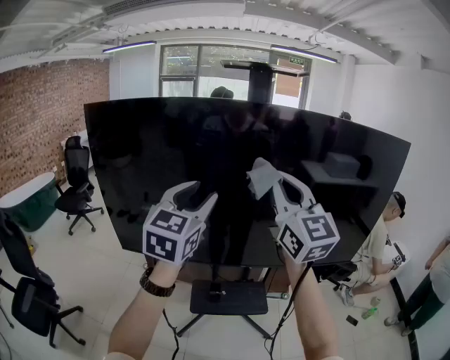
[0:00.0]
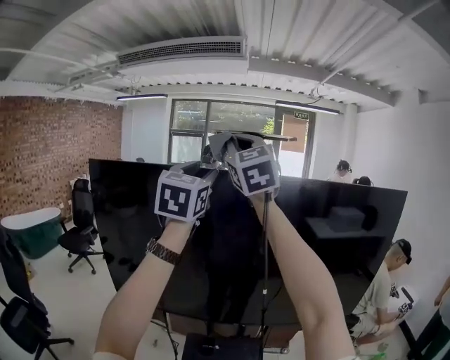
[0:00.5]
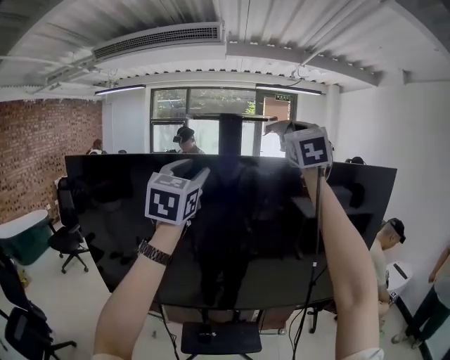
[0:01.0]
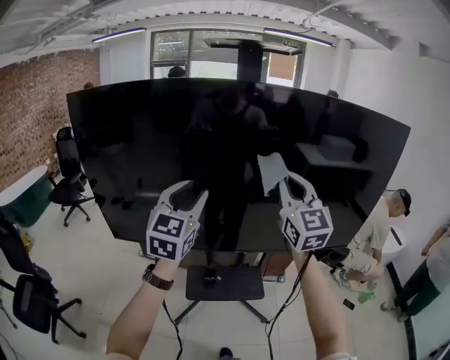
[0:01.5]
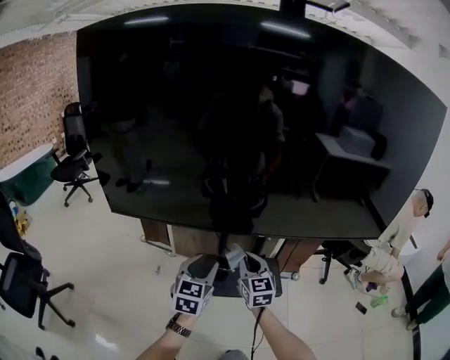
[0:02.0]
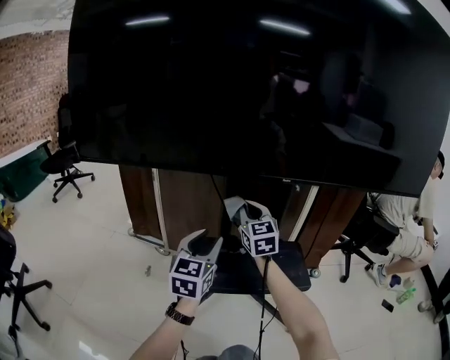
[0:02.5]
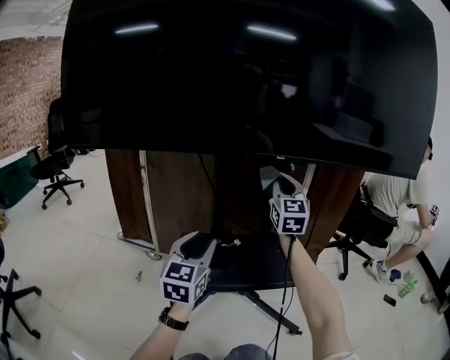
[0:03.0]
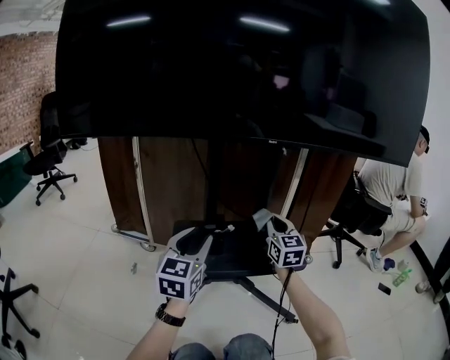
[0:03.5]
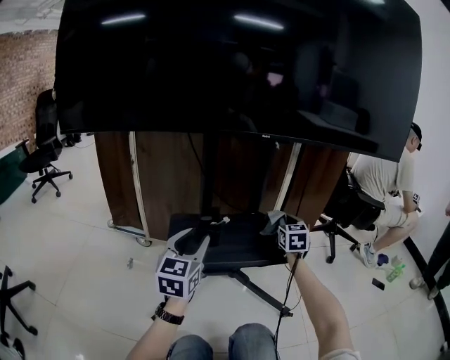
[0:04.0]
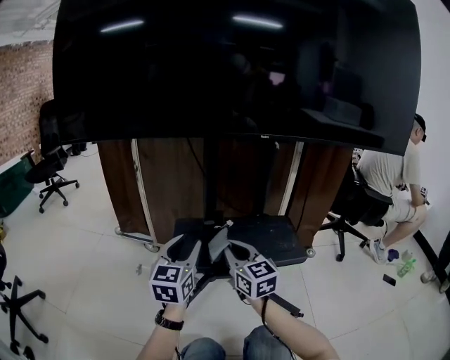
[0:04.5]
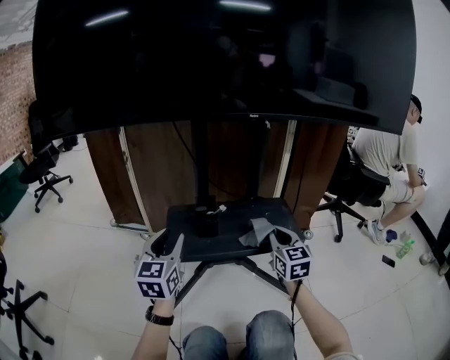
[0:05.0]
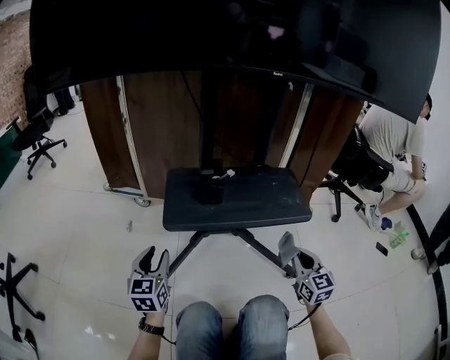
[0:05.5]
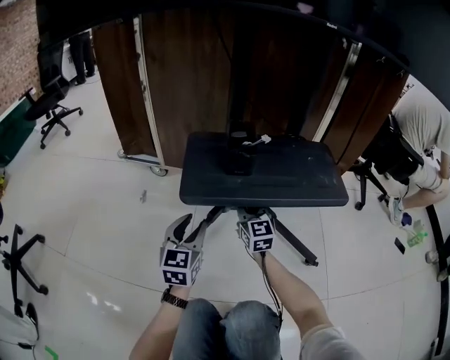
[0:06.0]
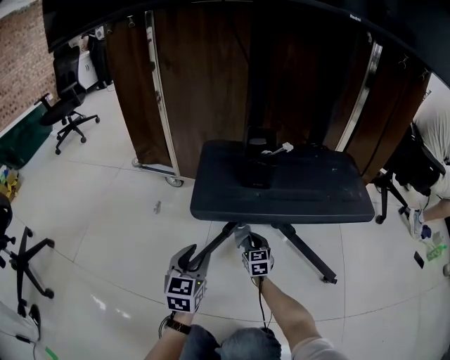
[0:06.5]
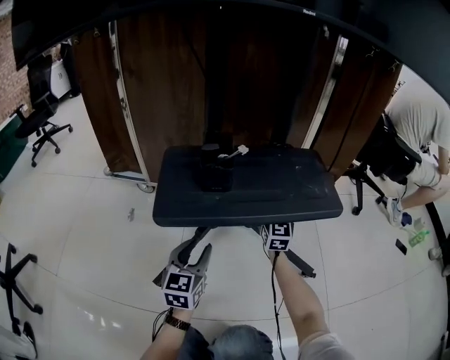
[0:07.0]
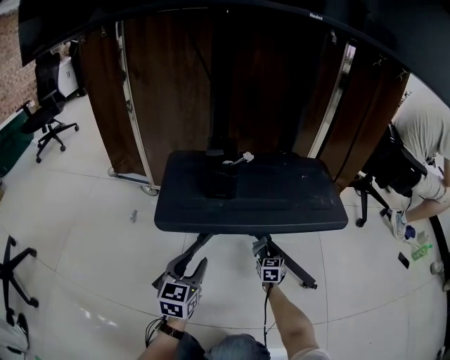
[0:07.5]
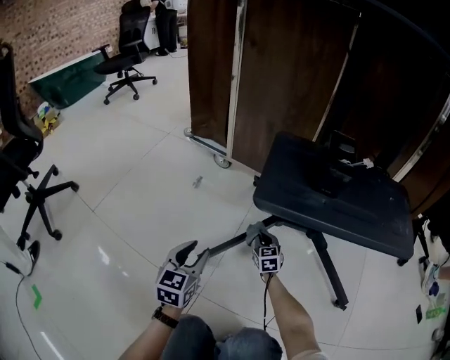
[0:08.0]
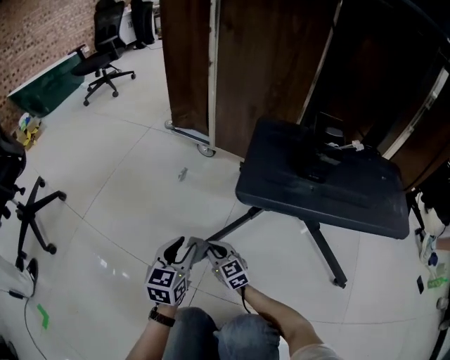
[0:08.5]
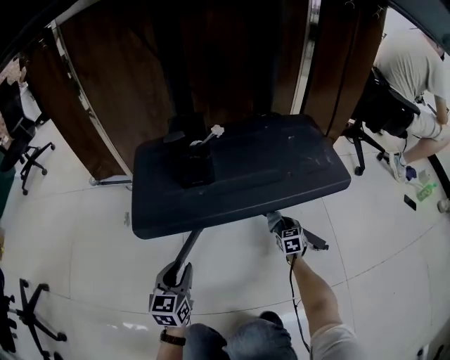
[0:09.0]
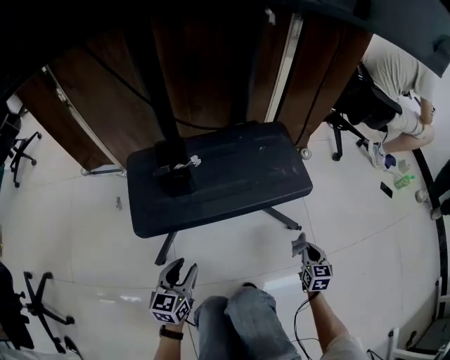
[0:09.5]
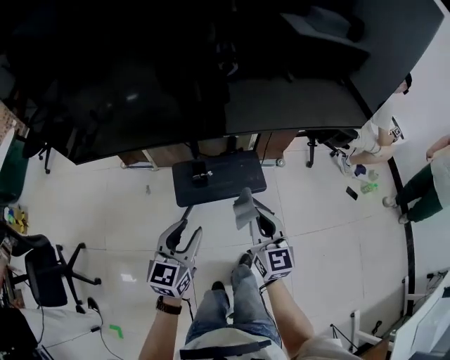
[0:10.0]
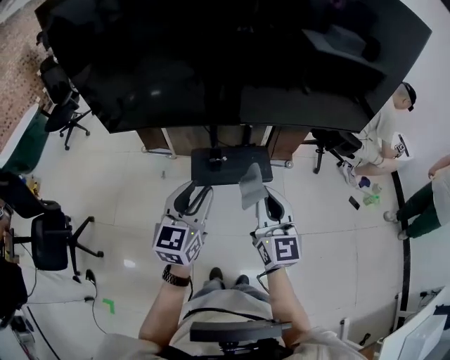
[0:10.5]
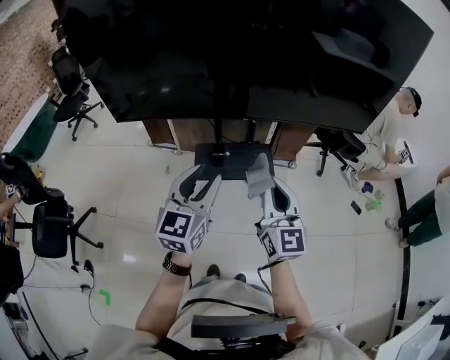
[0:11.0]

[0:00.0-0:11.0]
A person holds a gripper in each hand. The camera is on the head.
0:00.0 to 0:02.0: The grippers both shift downward by about 60 cm. The left gripper turns by some 20 degrees; the right gripper tilts its fingers roughly 30 degrees downward.
0:02.0 to 0:03.5: The left gripper heads downward, covering about 35 cm. The right gripper goes up and down, approximately 35 cm each way, reversing 2 times.
0:03.5 to 0:05.5: The right gripper moves left and right over some 25 cm, changing direction 2 times. Meanwhile the left gripper travels downward and to the left by roughly 25 cm, and rotates some 20 degrees.
0:05.5 to 0:07.5: The right gripper moves up and down over some 35 cm, changing direction 2 times. Meanwhile the left gripper shifts roughly 20 cm downward, to the right and forward.
0:07.5 to 0:09.0: The left gripper is displaced downward by approximately 5 cm.
0:09.0 to 0:11.0: The grippers both shift upward by roughly 1 m. The right gripper points its fingers approximately 40 degrees further upward.

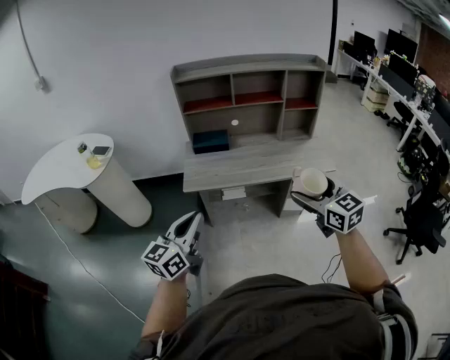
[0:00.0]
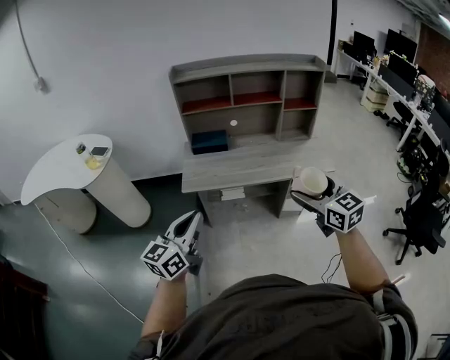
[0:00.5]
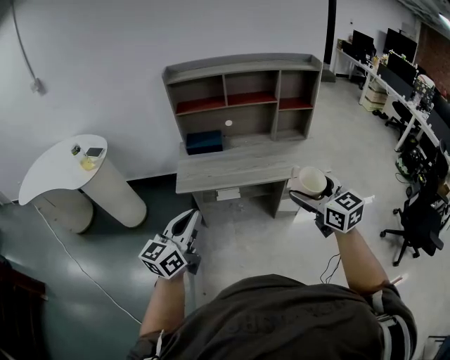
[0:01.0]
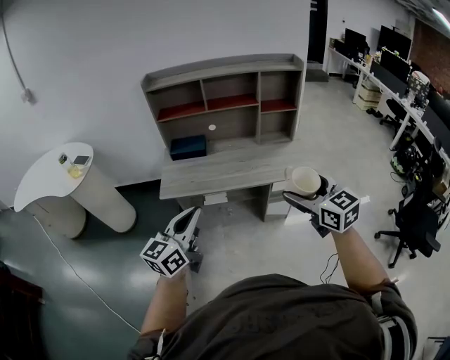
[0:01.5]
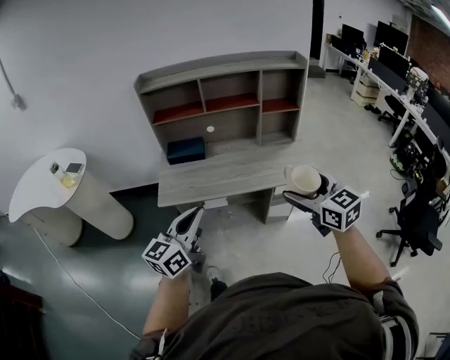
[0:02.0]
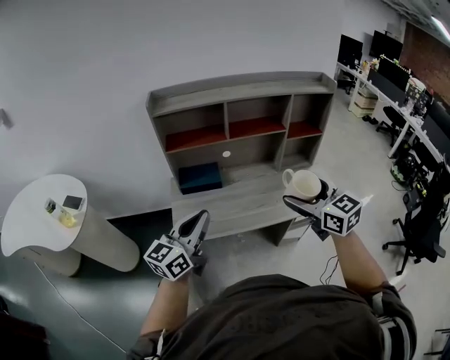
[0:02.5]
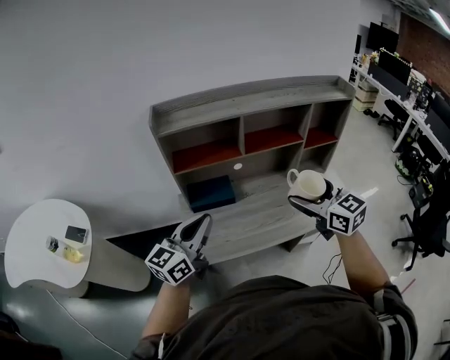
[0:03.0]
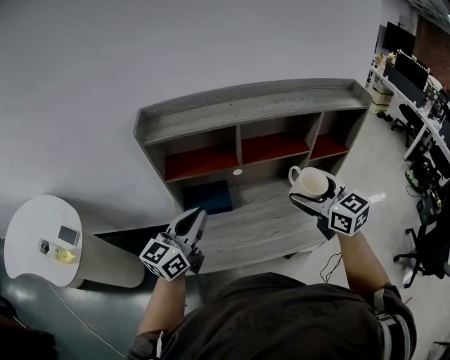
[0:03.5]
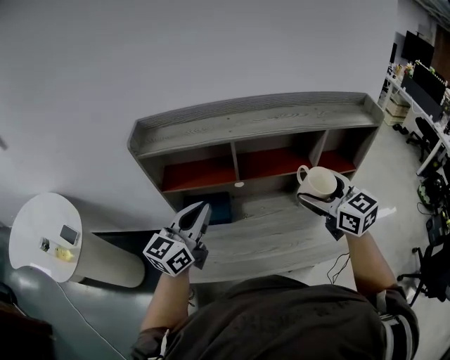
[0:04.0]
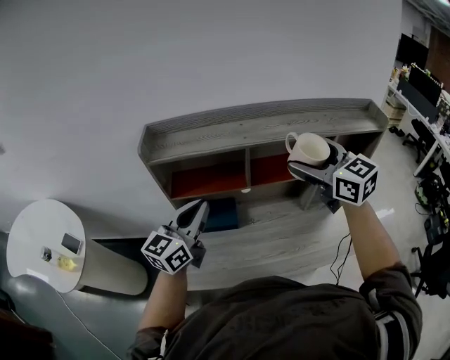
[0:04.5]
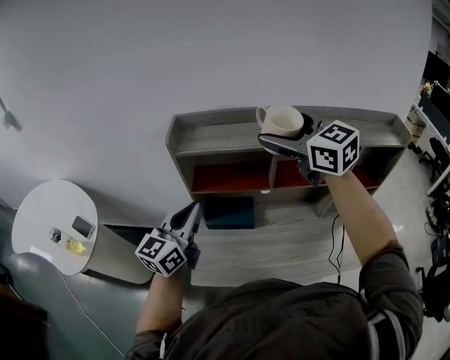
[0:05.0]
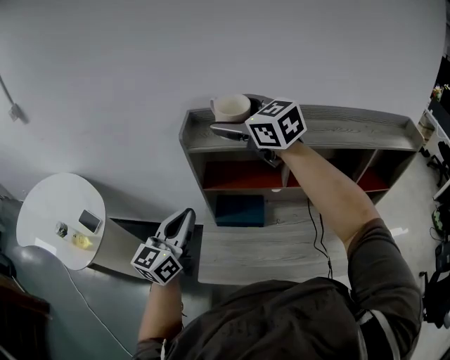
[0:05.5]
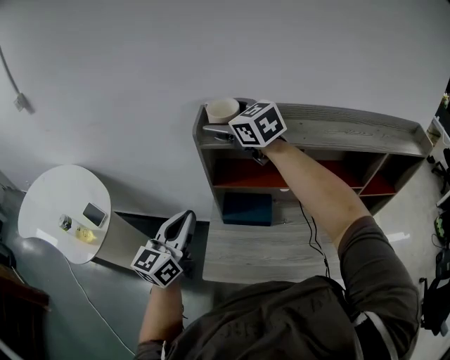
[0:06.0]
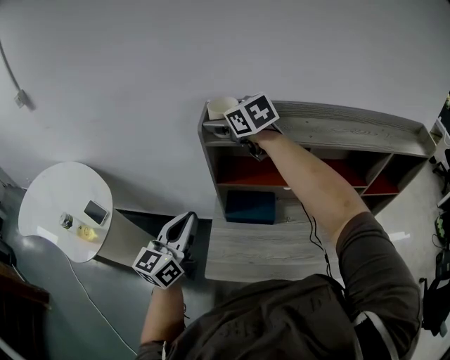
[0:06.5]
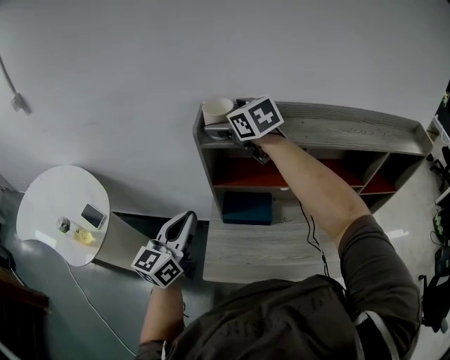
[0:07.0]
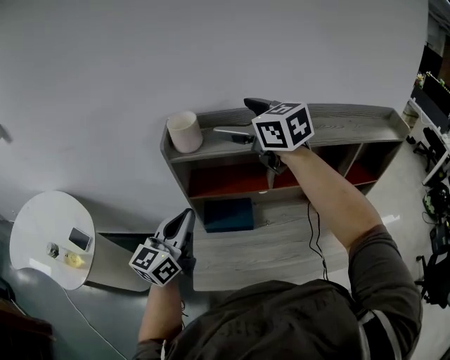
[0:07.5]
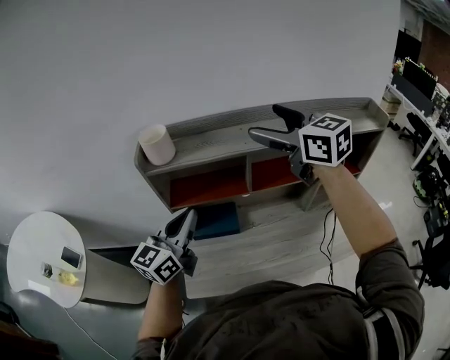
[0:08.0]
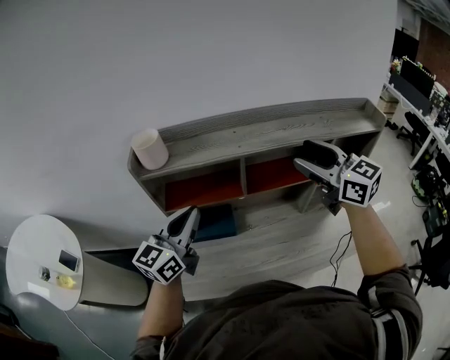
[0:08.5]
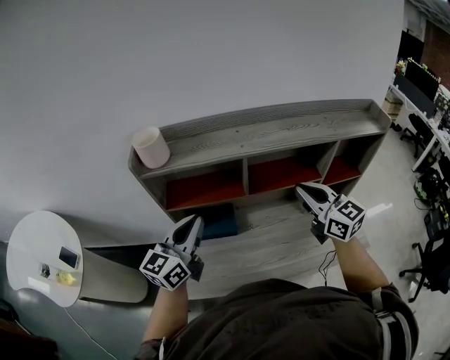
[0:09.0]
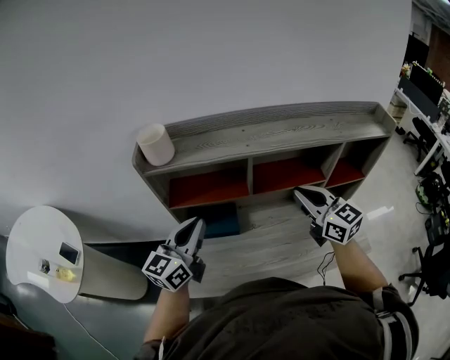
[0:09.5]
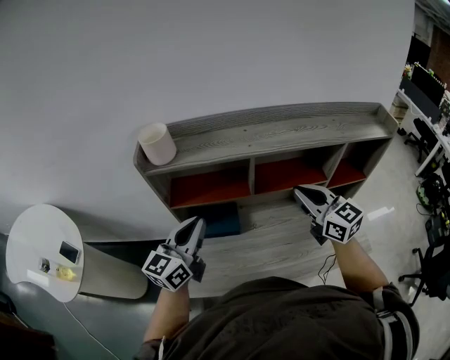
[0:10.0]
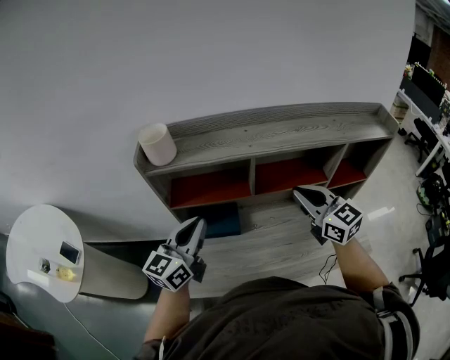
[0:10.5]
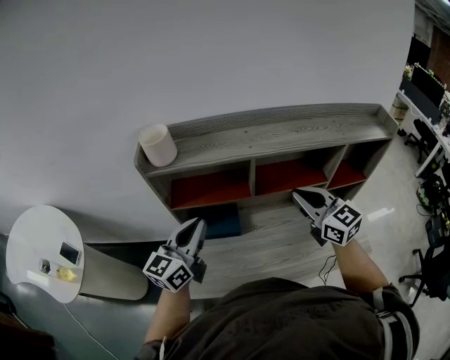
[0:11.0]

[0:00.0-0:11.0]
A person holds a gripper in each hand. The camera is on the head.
0:00.0 to 0:02.0: The two grippers go approximately 15 cm to the right and forward.
0:02.0 to 0:03.5: Both grippers are carried forward and to the left, about 40 cm.
0:03.5 to 0:05.5: The right gripper goes some 40 cm to the left, forward and upward, and rotates approximately 30 degrees; the left gripper goes about 15 cm to the left and forward.
0:05.5 to 0:07.5: The right gripper goes about 5 cm to the right.
0:07.5 to 0:09.0: The right gripper moves to the right, downward and backward, approximately 30 cm, and closes its fingers; the left gripper is displaced to the right by roughly 10 cm.
0:09.0 to 0:11.0: The grippers make only small movements.

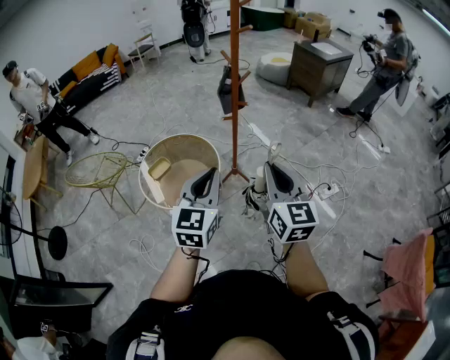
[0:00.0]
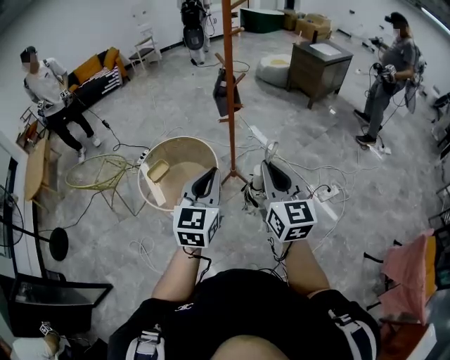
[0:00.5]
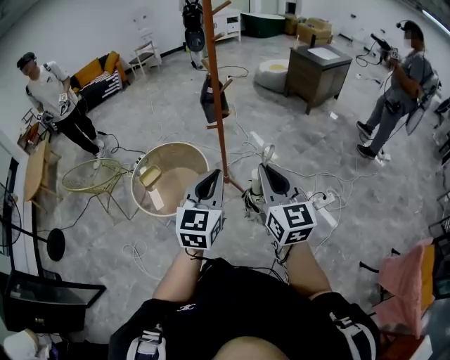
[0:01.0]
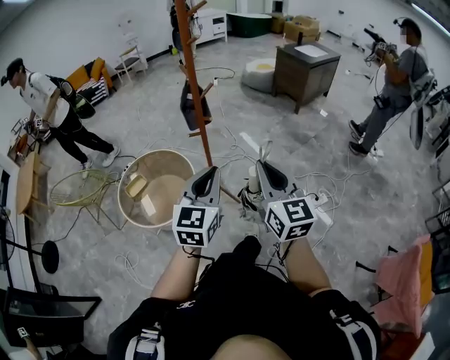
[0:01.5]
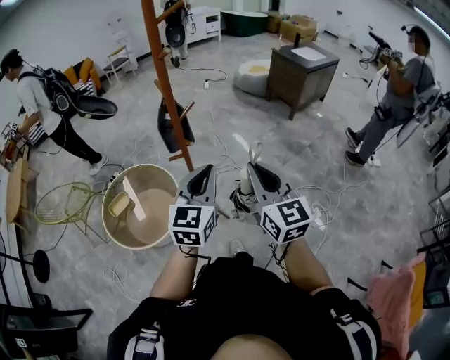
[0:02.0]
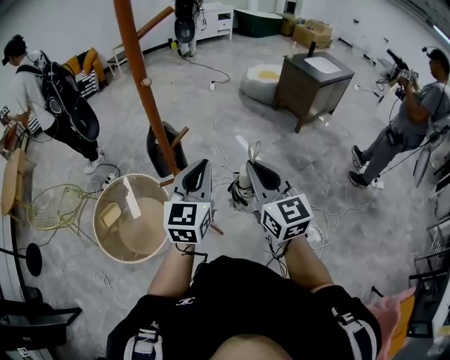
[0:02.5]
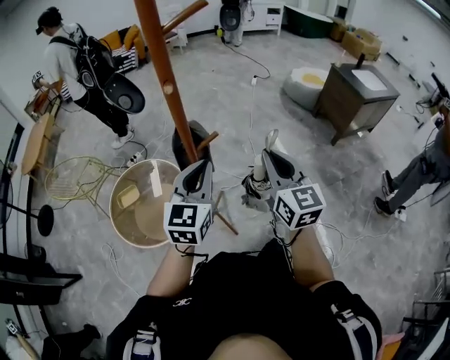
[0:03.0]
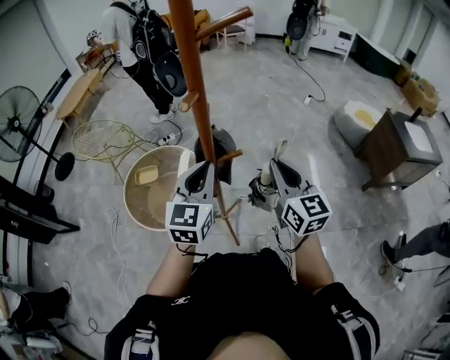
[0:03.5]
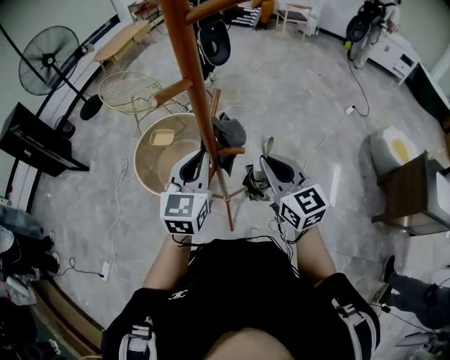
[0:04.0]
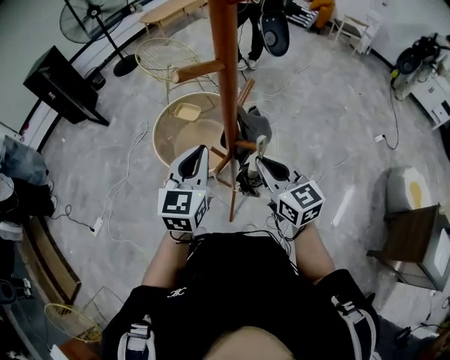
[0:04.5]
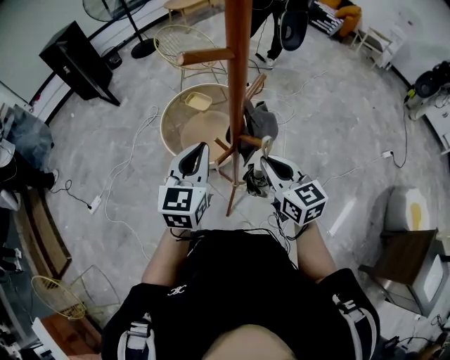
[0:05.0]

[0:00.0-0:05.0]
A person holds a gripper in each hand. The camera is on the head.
0:00.0 to 0:02.5: The pair of grippers is taken forward and to the right, approximately 50 cm.
0:02.5 to 0:05.0: The right gripper shifts by about 35 cm, and rotates roughly 80 degrees. The left gripper changes place by some 15 cm, and turns by about 80 degrees.
